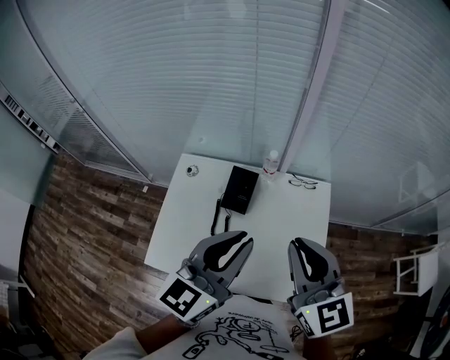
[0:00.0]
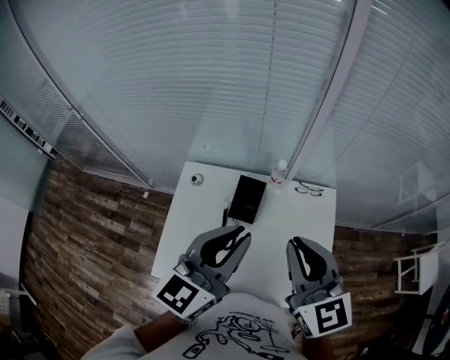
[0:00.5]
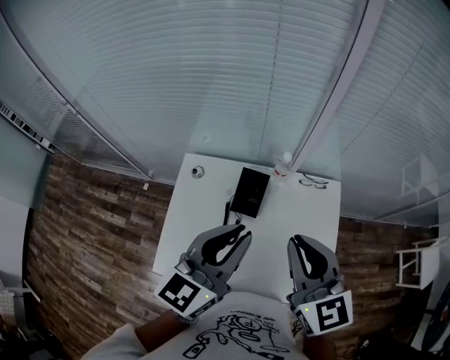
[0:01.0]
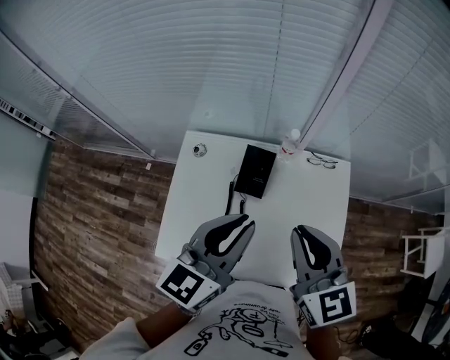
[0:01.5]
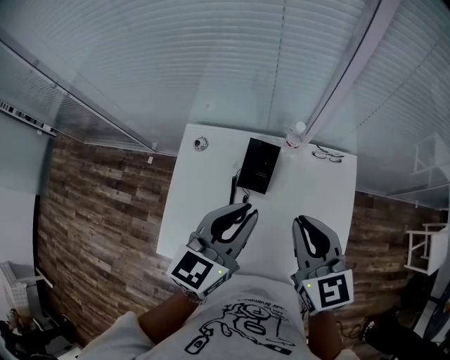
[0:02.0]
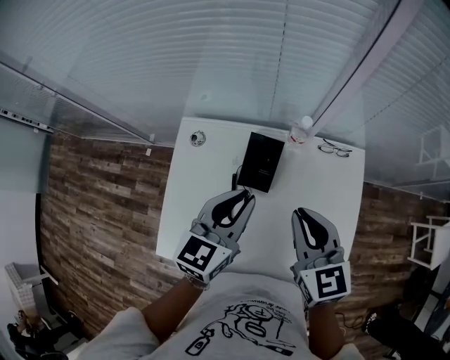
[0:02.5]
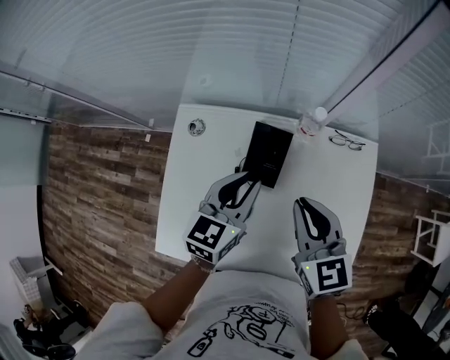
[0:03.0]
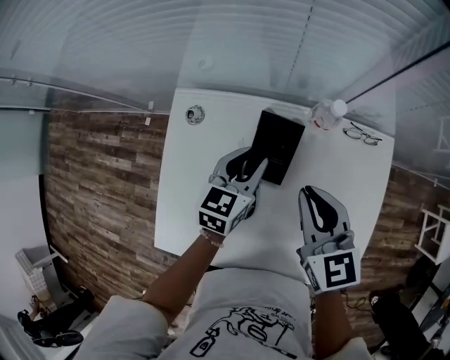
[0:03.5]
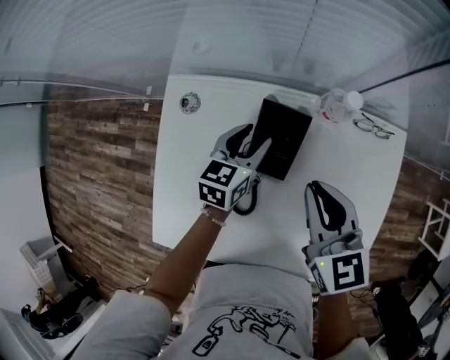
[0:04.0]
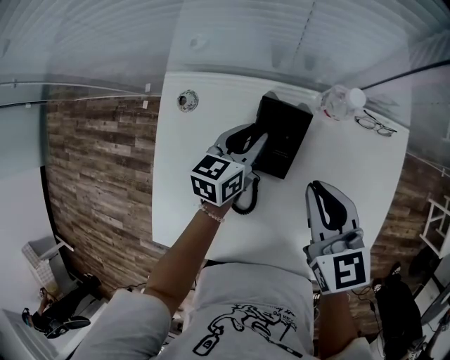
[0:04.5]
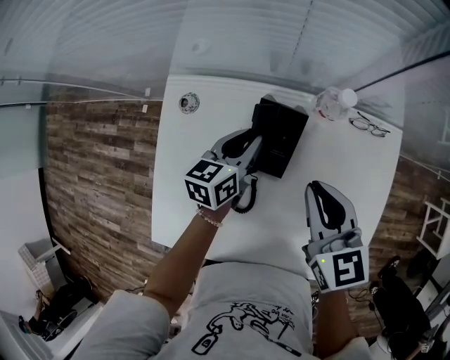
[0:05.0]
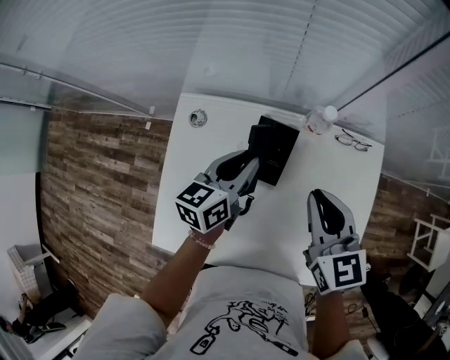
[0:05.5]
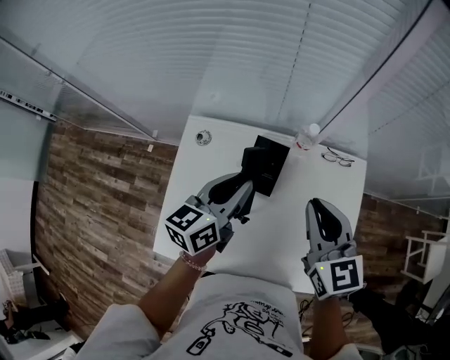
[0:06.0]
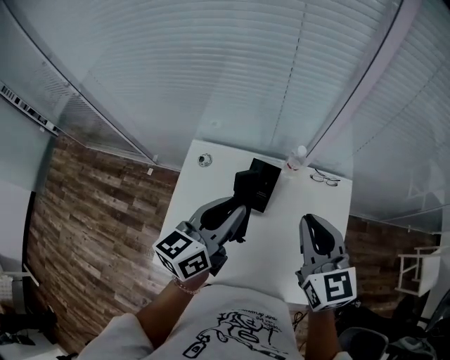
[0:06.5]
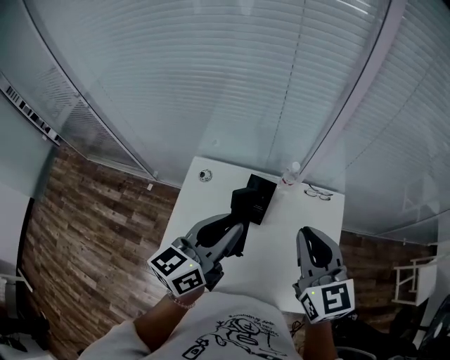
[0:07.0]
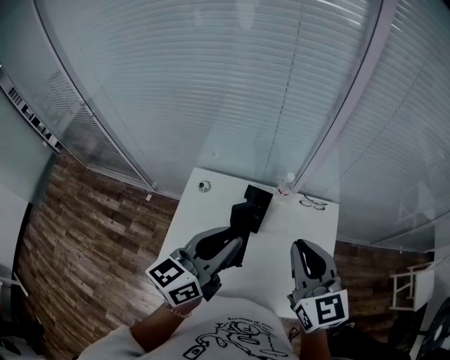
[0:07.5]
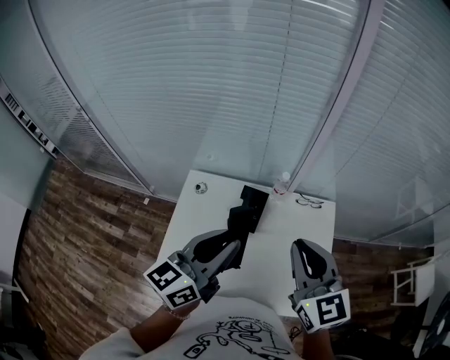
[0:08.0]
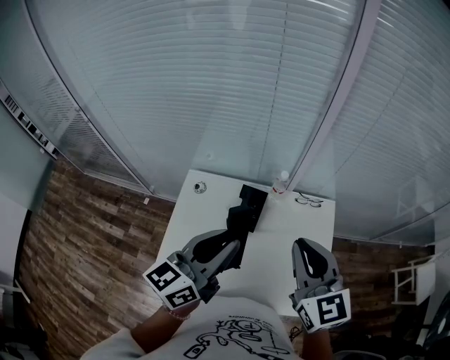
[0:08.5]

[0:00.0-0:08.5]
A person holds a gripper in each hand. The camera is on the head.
0:00.0 to 0:02.0: The two grippers go roughly 15 cm downward, forward and to the left.
0:02.0 to 0:04.0: The left gripper shifts roughly 35 cm downward and forward, swivels about 20 degrees, and opens up; the right gripper heads downward and forward, covering approximately 20 cm.
0:04.0 to 0:06.5: The right gripper shifts approximately 20 cm upward and backward, while the left gripper is displaced upward and backward by some 35 cm, rotates some 30 degrees, and closes up.
0:06.5 to 0:08.5: Both grippers move upward and backward, approximately 10 cm.

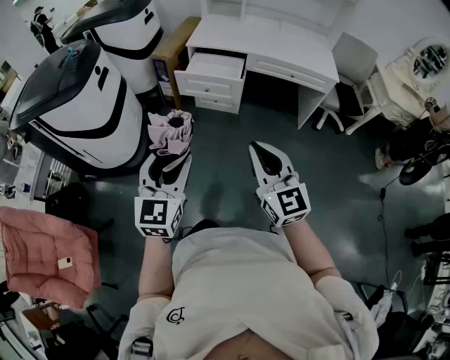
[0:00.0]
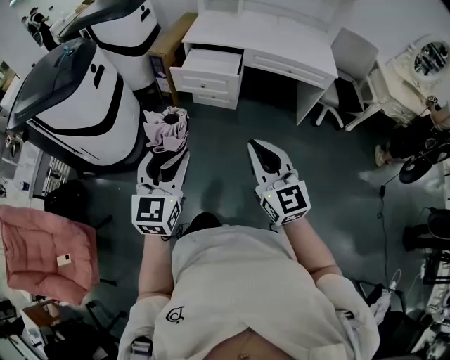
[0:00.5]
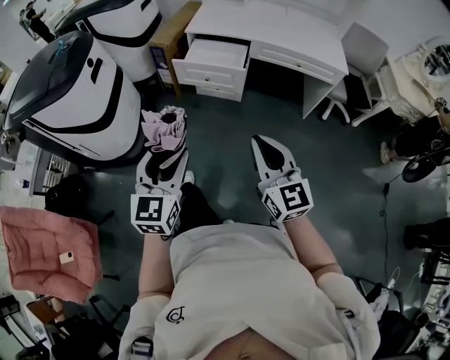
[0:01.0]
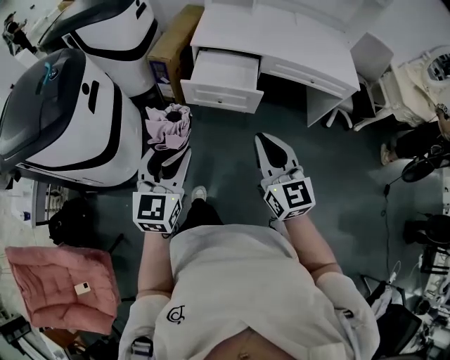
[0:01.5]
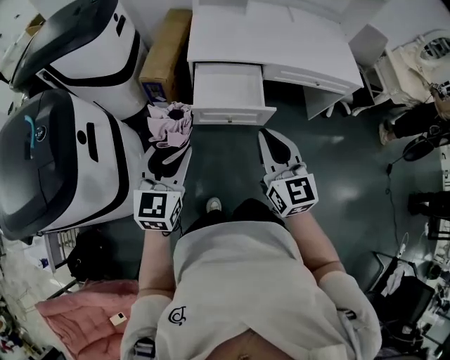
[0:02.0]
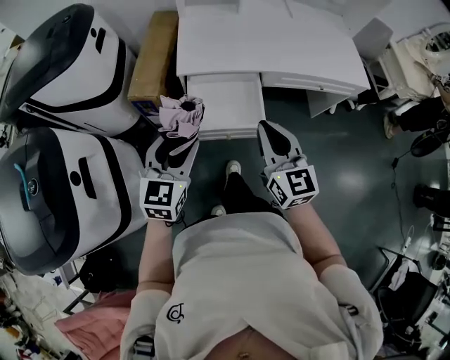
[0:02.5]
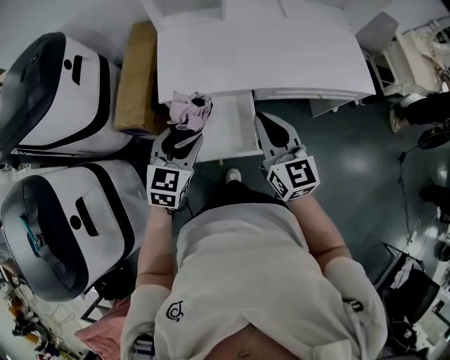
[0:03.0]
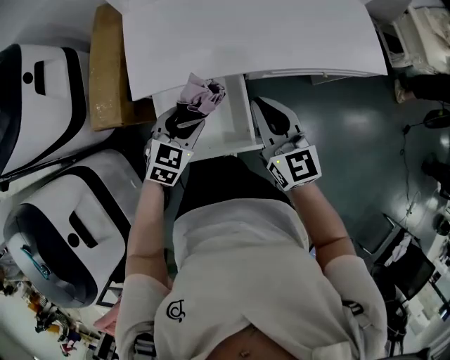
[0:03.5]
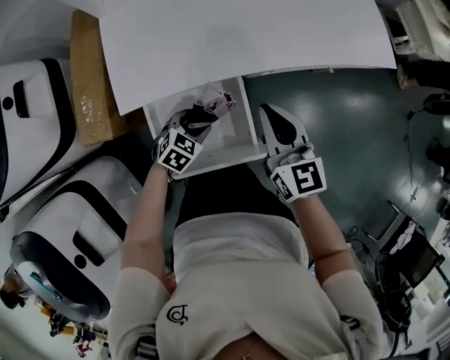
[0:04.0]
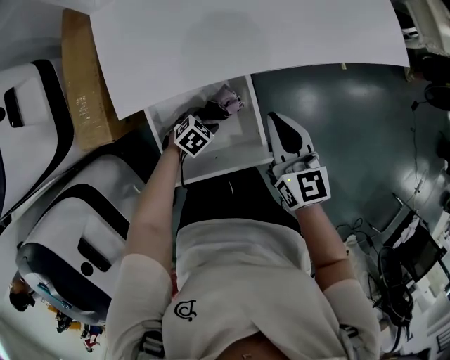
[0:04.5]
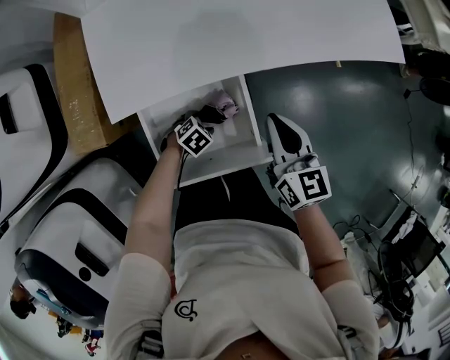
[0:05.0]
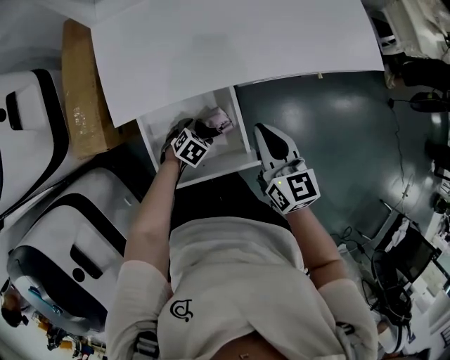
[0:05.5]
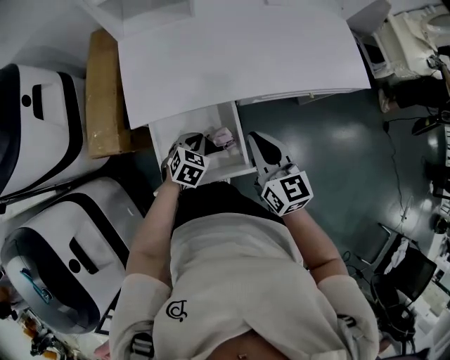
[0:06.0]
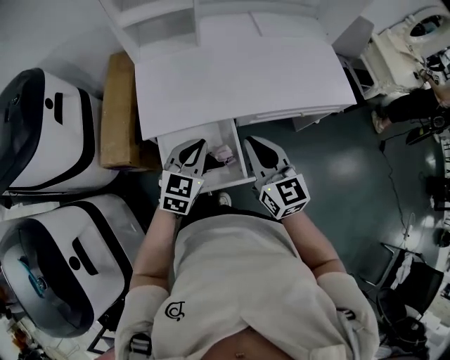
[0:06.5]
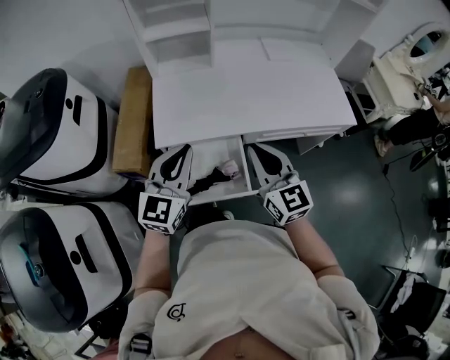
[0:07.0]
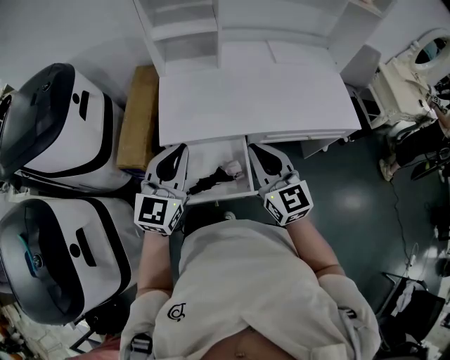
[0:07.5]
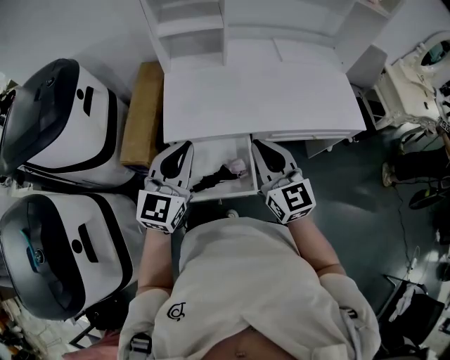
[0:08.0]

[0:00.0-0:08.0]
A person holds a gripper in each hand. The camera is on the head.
0:00.0 to 0:02.0: The grippers both shift forward by about 40 cm.
0:02.0 to 0:04.0: The left gripper ends up roughly 50 cm from where it was, and points its fingers about 40 degrees further downward; the right gripper changes place by some 40 cm.
0:04.0 to 0:06.0: The right gripper travels downward and back again, approximately 5 cm each way. Meanwhile the left gripper moves roughly 15 cm downward and comes back, and closes up.
0:06.0 to 0:08.0: The right gripper goes approximately 15 cm upward, and turns by some 20 degrees; the left gripper travels upward by roughly 35 cm, and points its fingers about 50 degrees further upward.

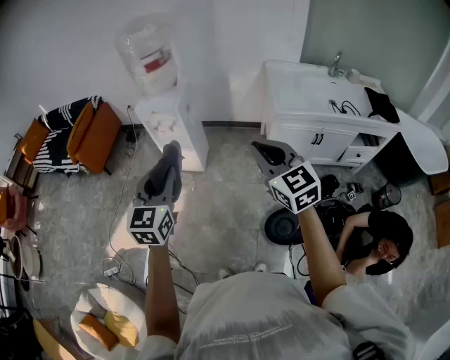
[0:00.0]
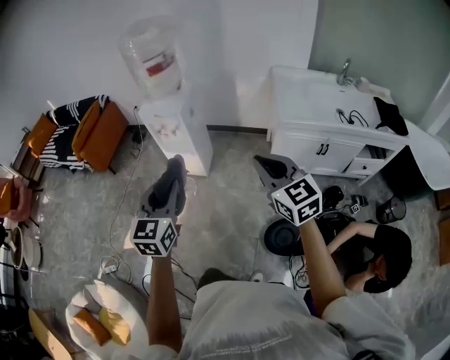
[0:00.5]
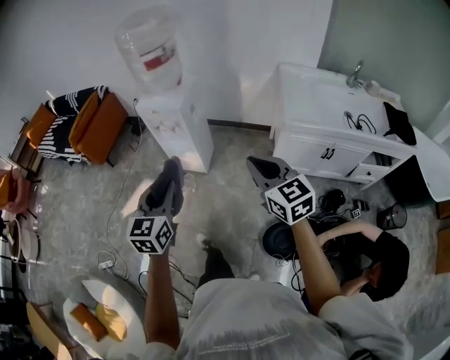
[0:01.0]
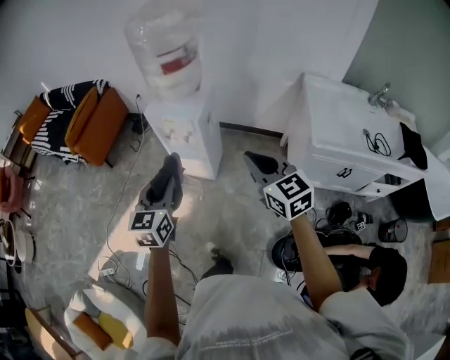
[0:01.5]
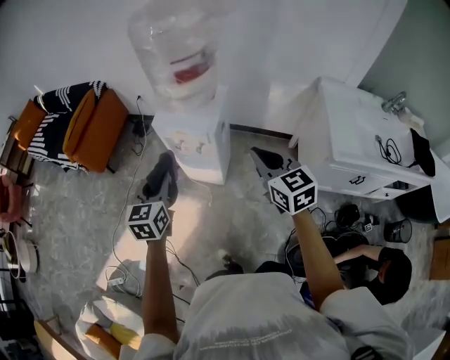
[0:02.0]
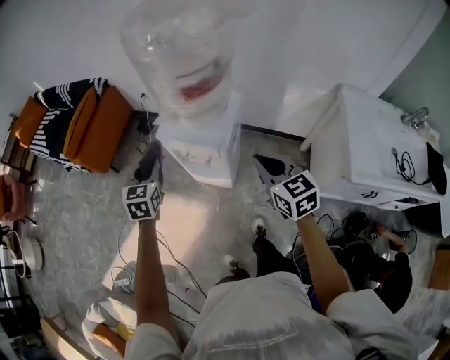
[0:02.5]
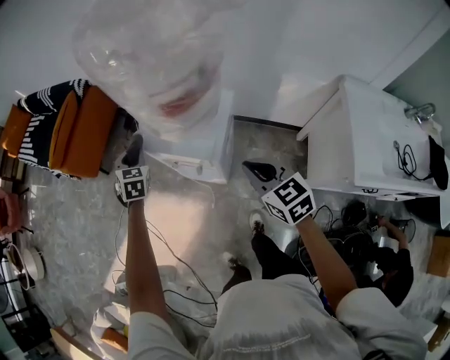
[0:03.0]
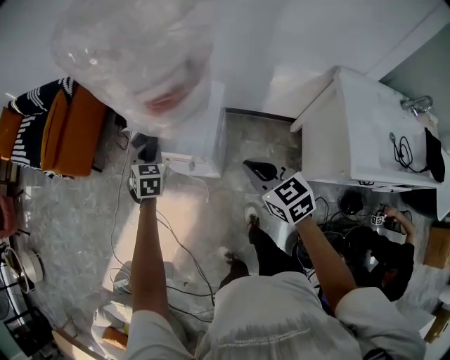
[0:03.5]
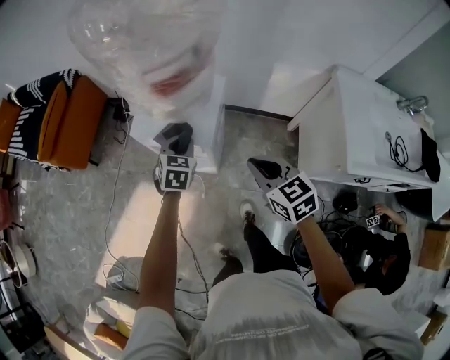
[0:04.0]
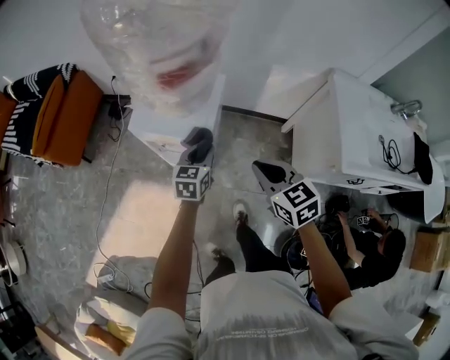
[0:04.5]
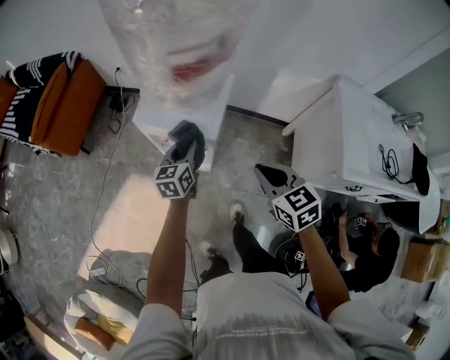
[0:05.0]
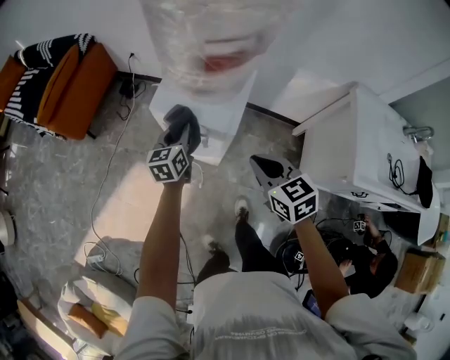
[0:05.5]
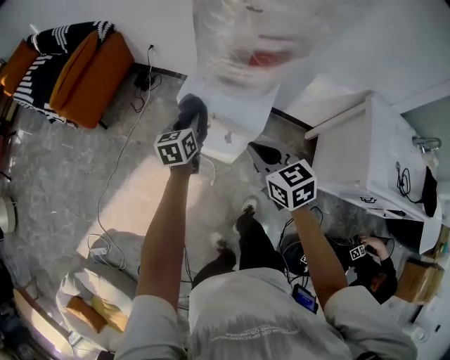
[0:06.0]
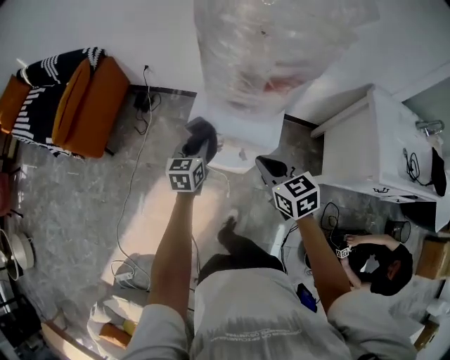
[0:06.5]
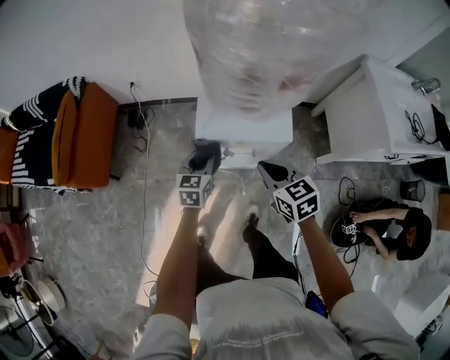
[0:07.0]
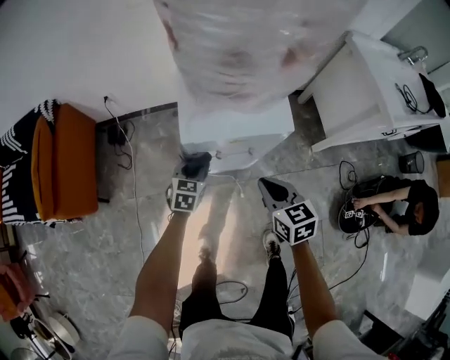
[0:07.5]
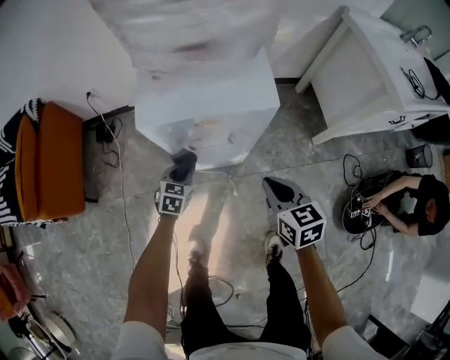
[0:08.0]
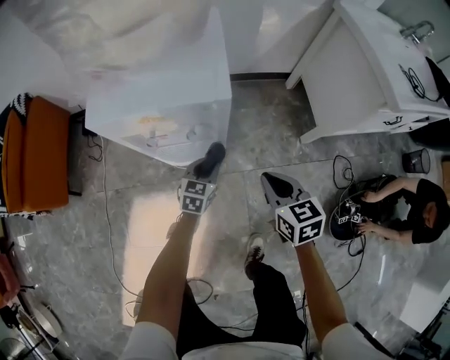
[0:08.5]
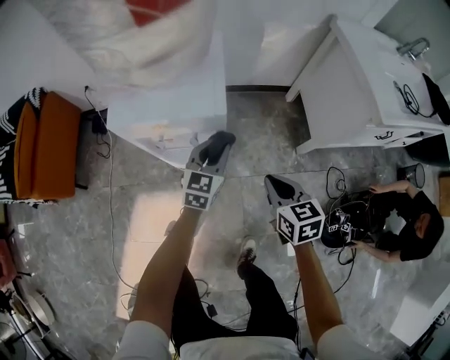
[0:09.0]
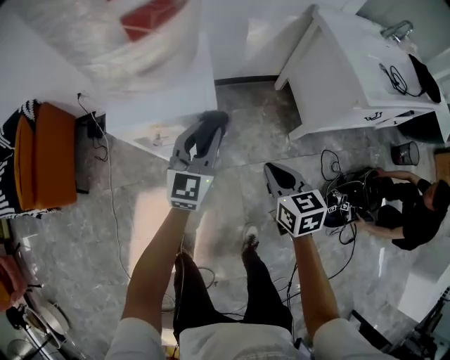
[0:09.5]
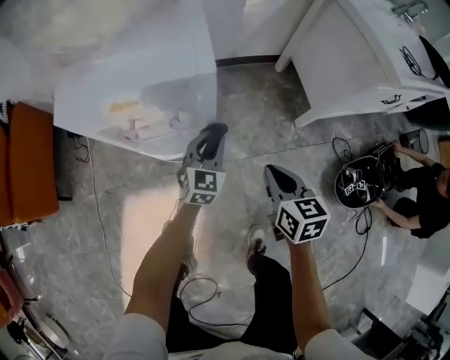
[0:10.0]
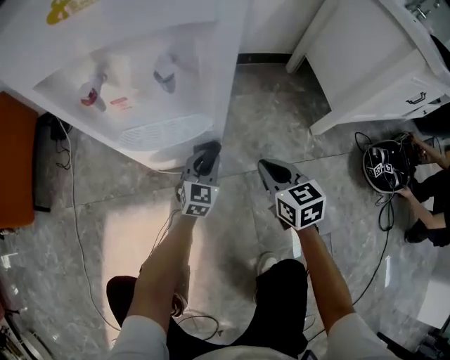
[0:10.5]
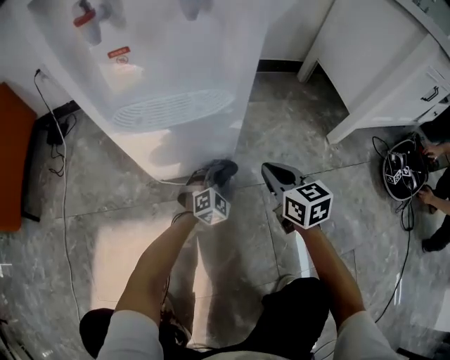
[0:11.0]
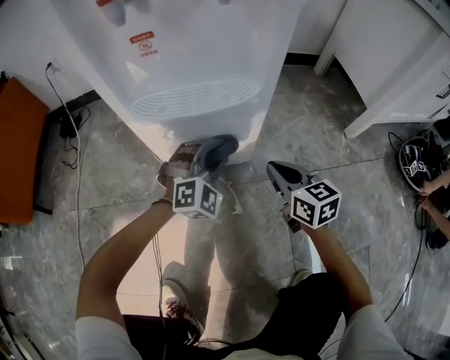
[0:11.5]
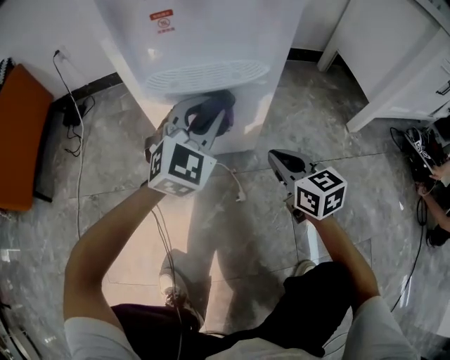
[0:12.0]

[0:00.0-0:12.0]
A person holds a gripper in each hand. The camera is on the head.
0:00.0 to 0:02.0: The right gripper heads forward, covering some 35 cm; the left gripper goes some 40 cm forward and to the left.
0:02.0 to 0:04.0: The left gripper moves forward, downward and to the right, roughly 30 cm, and swivels roughly 30 degrees. The right gripper shifts roughly 15 cm downward and forward.
0:04.0 to 0:06.0: Both grippers move to the left, approximately 15 cm. The left gripper rotates roughly 40 degrees.
0:06.0 to 0:08.0: Both grippers move downward, about 25 cm. The right gripper turns by roughly 40 degrees; the left gripper turns by some 60 degrees.
0:08.0 to 0:10.0: The right gripper is displaced to the right and downward by some 15 cm. Meanwhile the left gripper goes some 25 cm to the right, goes upward and returns, about 30 cm each way, and changes its angle by roughly 30 degrees.
0:10.0 to 0:12.0: The right gripper is displaced downward by some 30 cm, and turns by some 20 degrees. The left gripper goes about 20 cm downward and to the left, and rotates roughly 30 degrees.
